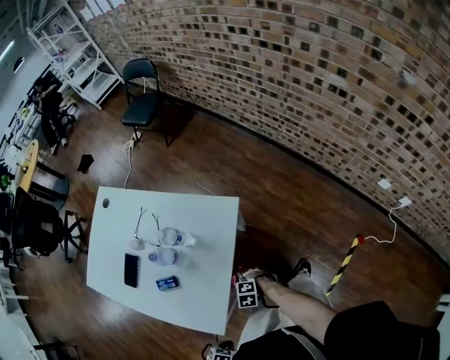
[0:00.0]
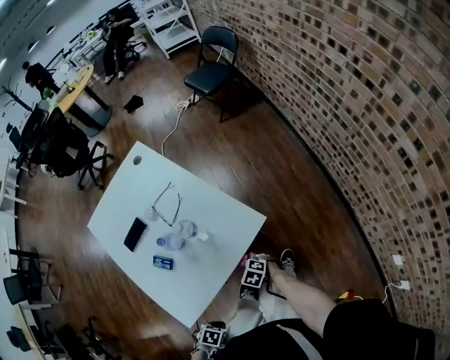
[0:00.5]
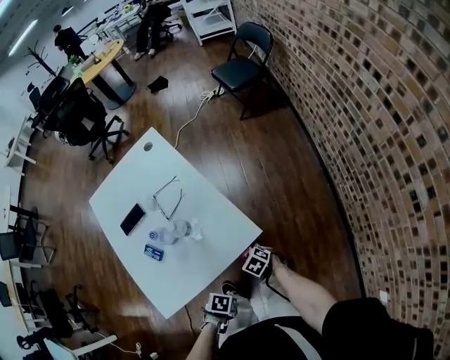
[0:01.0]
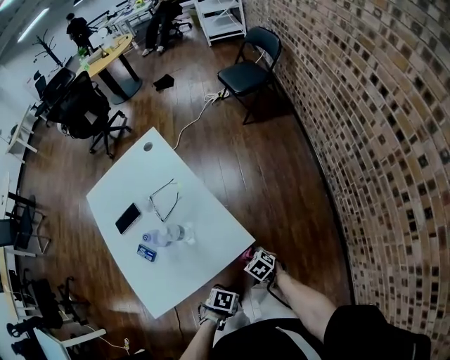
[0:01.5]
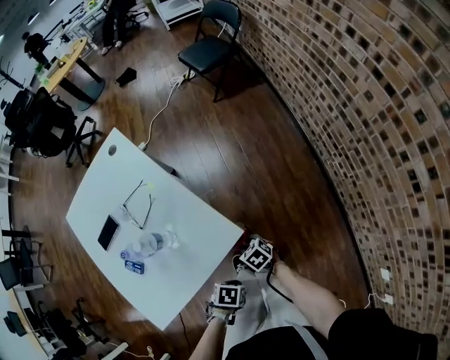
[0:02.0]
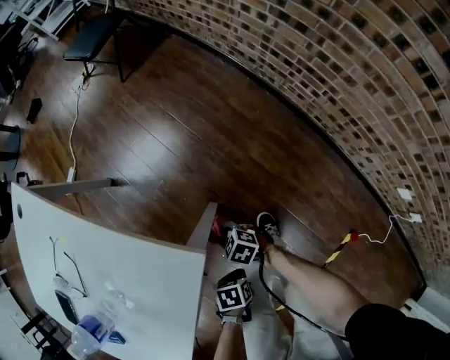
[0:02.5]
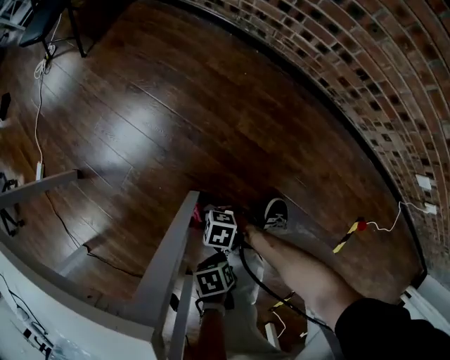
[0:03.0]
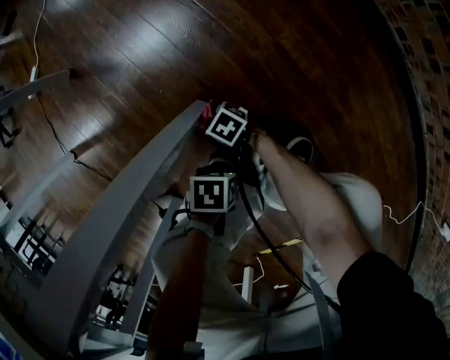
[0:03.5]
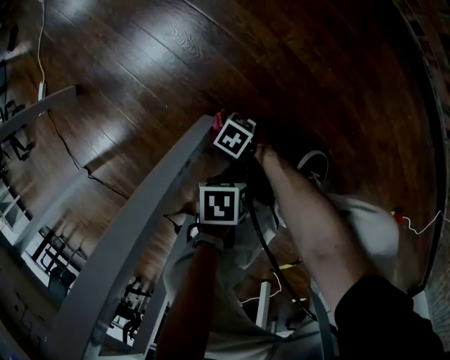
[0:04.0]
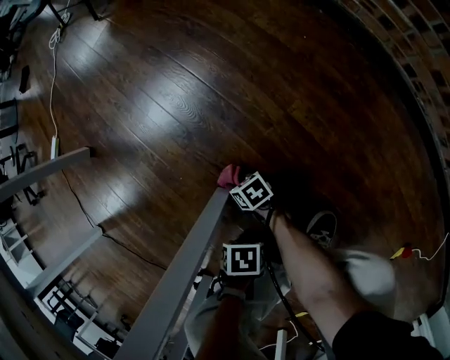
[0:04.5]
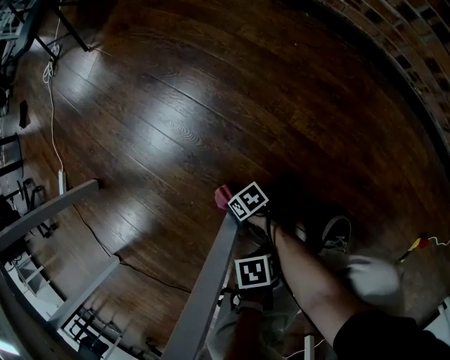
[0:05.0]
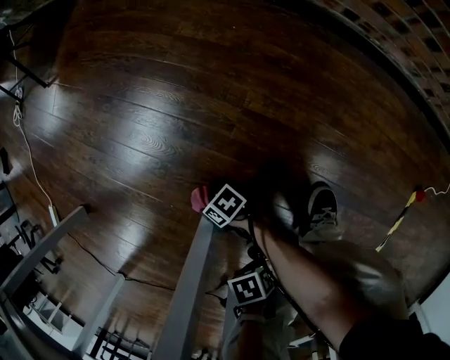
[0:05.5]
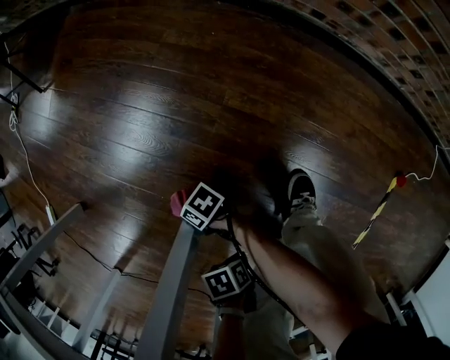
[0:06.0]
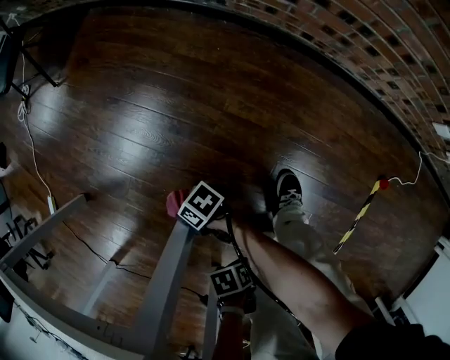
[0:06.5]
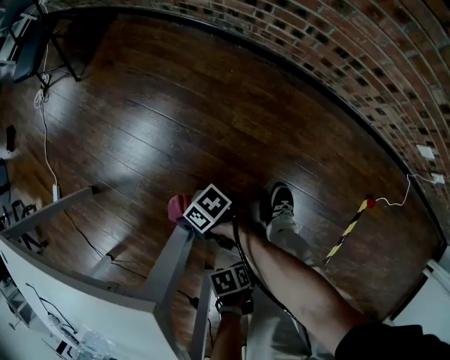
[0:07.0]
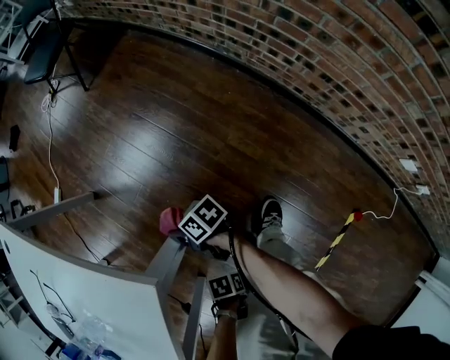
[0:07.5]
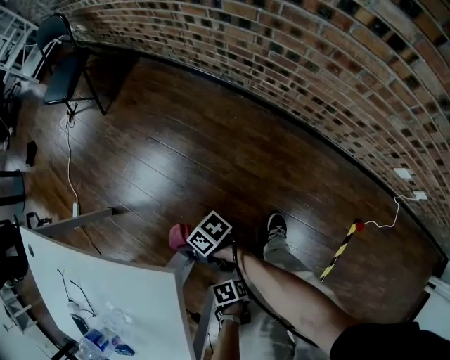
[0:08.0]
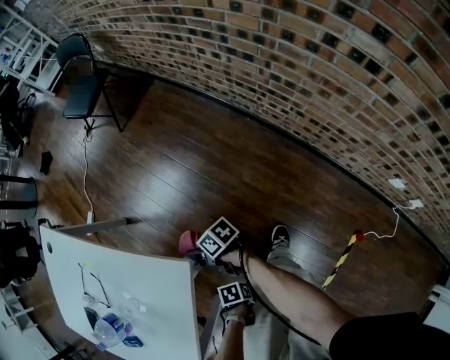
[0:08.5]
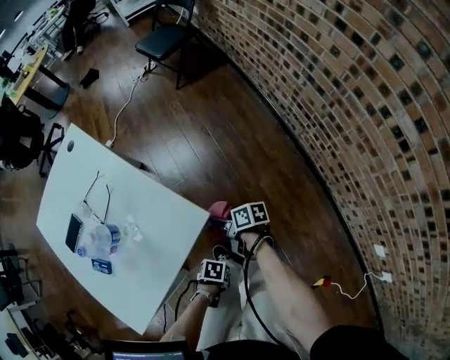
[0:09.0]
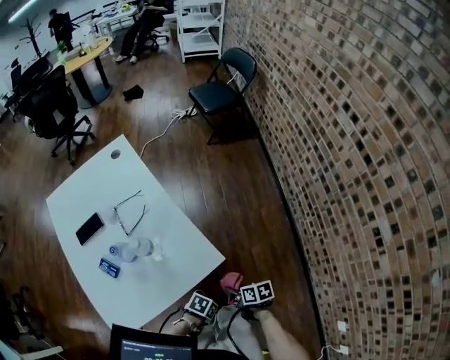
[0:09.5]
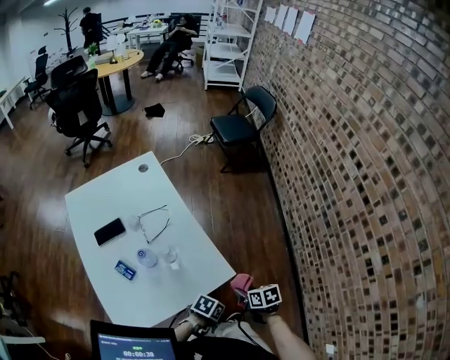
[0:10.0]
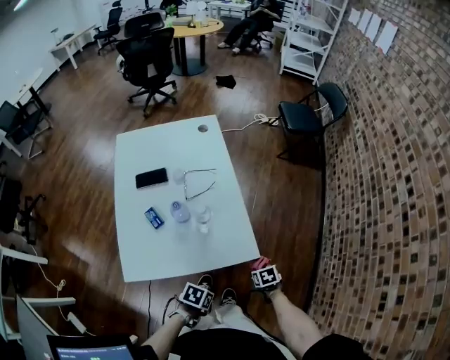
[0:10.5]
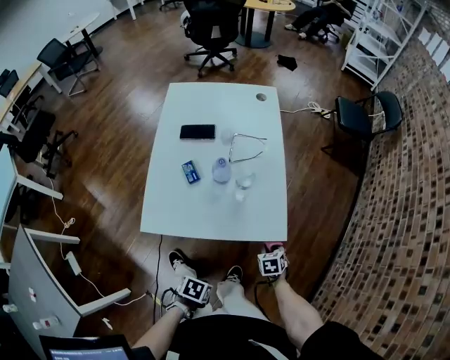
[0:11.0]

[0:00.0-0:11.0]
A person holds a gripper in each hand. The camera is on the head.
0.0 to 2.0 s: The right gripper shifts by about 30 cm, and changes its angle by roughly 20 degrees.
2.0 to 3.5 s: The right gripper moves downward, about 60 cm.
3.5 to 5.5 s: The right gripper goes downward and returns, some 10 cm each way, and rotates around the line of its fingers by about 40 degrees, clockwise from behind.
5.5 to 7.5 s: The right gripper shifts roughly 40 cm upward.
7.5 to 9.0 s: The right gripper goes some 15 cm upward.
9.0 to 11.0 s: The right gripper moves roughly 15 cm upward and comes back, and twists approximately 80 degrees counterclockwise, seen from behind.

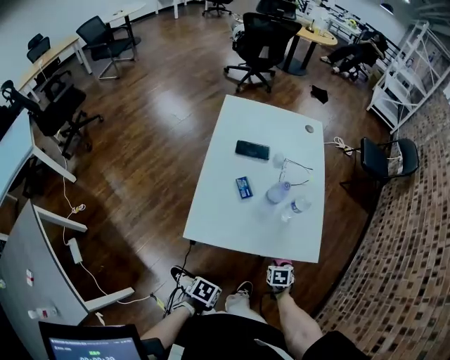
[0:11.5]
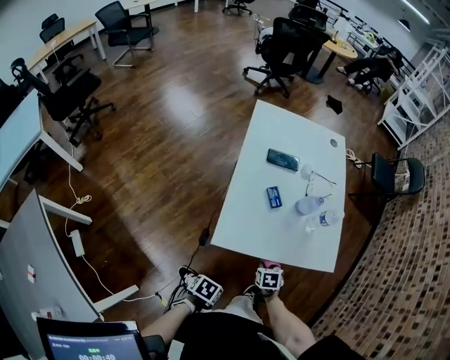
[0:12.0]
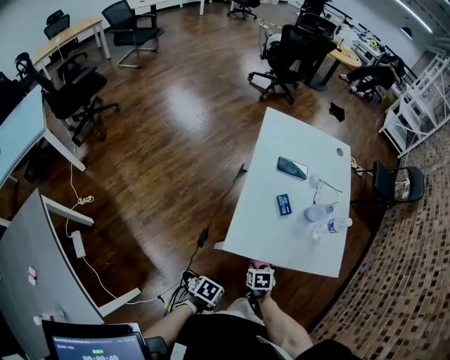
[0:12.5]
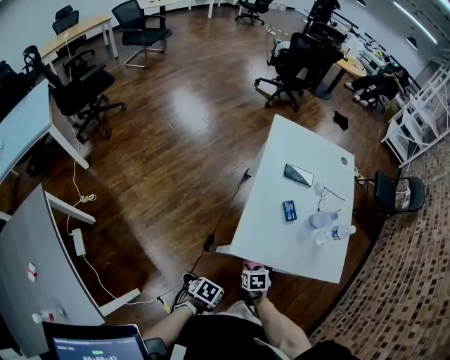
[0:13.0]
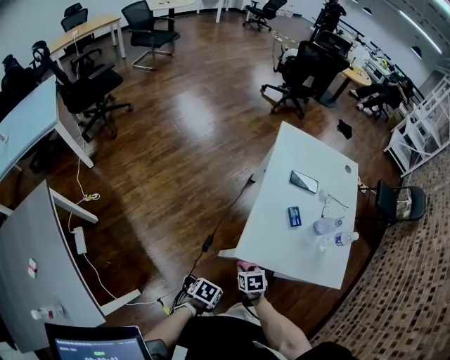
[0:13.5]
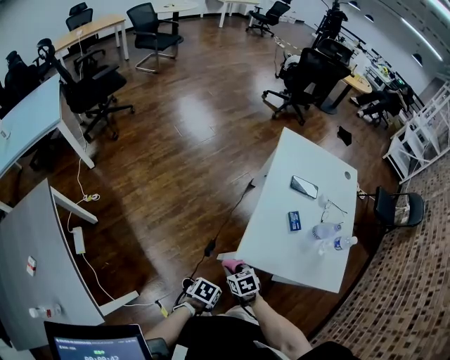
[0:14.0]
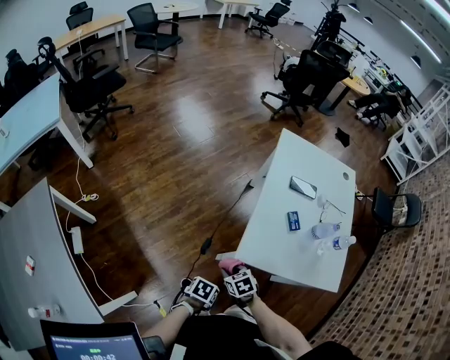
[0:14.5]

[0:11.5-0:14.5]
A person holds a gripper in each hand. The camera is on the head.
11.5 to 13.0 s: The right gripper changes place by roughly 30 cm.
13.0 to 14.5 s: The right gripper changes place by approximately 15 cm, and turns by about 30 degrees.

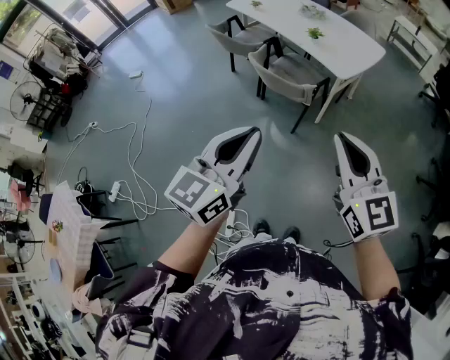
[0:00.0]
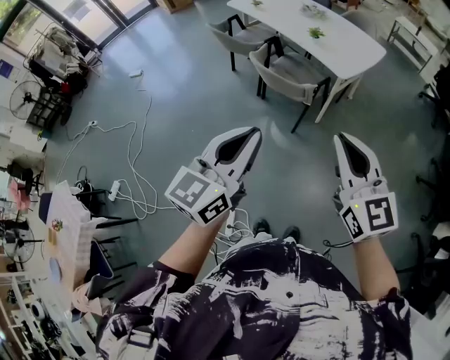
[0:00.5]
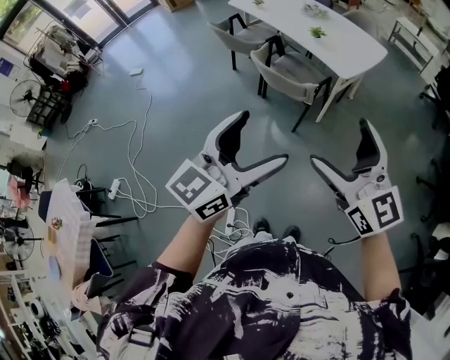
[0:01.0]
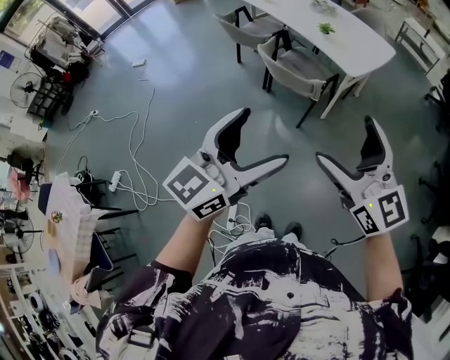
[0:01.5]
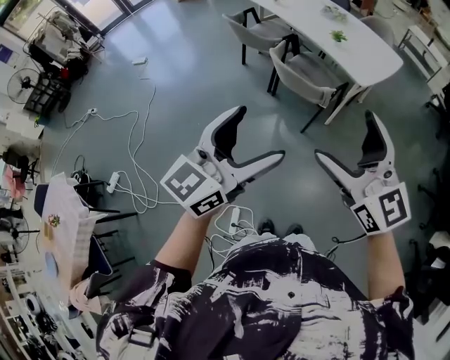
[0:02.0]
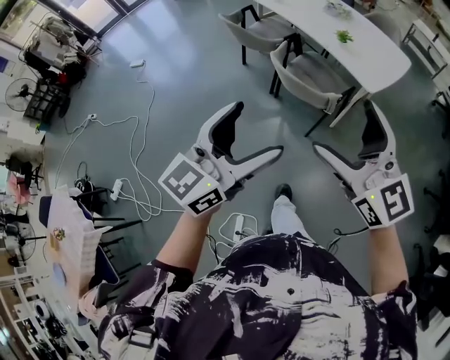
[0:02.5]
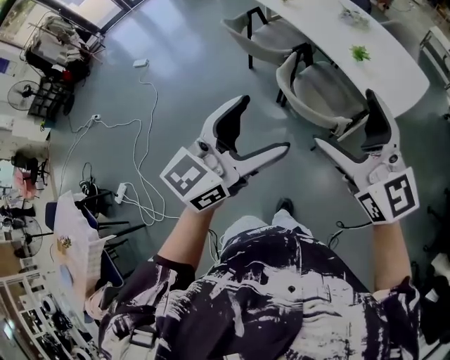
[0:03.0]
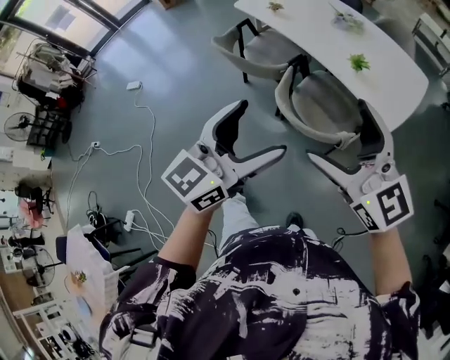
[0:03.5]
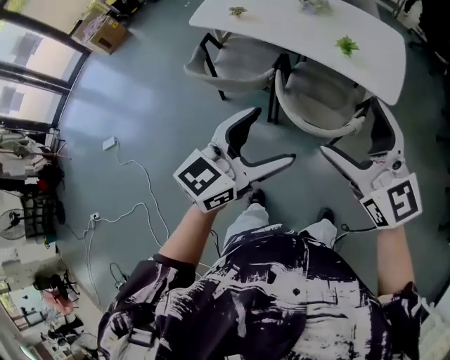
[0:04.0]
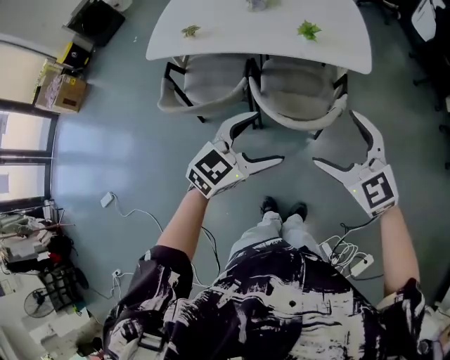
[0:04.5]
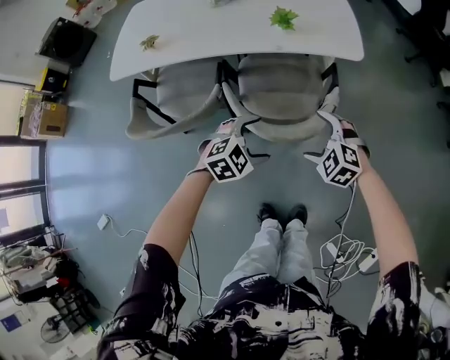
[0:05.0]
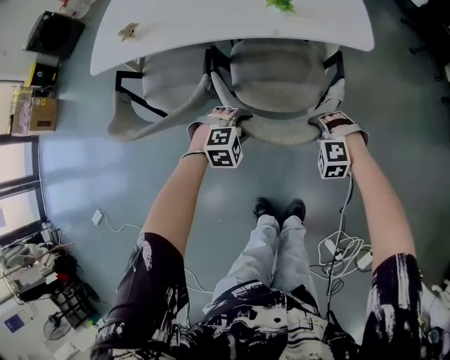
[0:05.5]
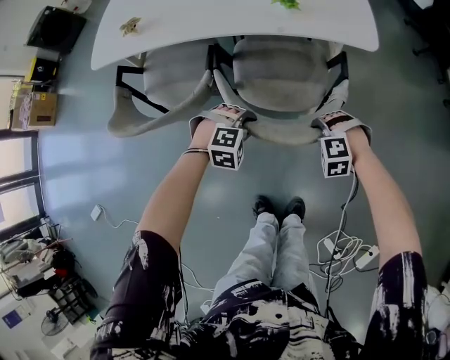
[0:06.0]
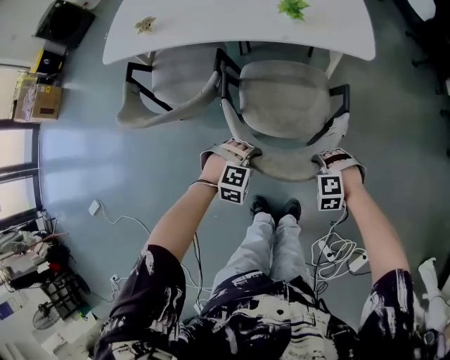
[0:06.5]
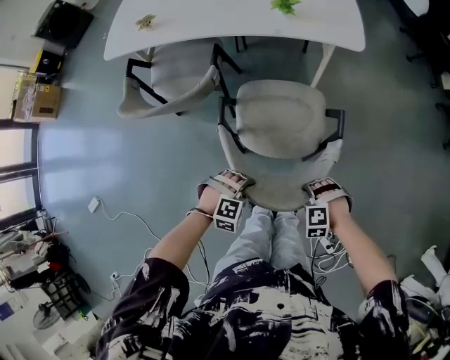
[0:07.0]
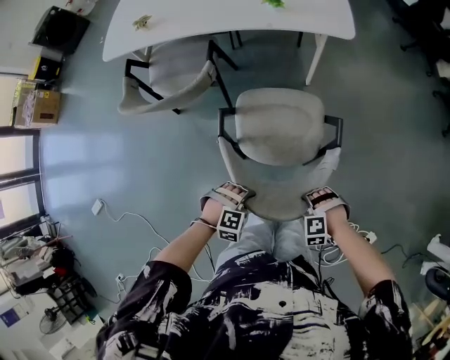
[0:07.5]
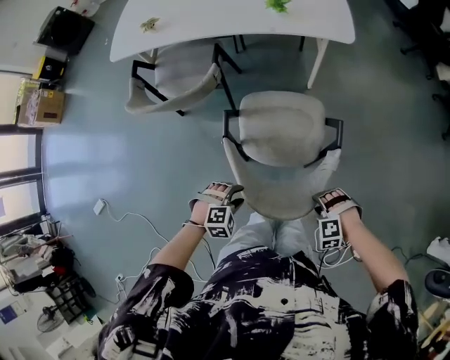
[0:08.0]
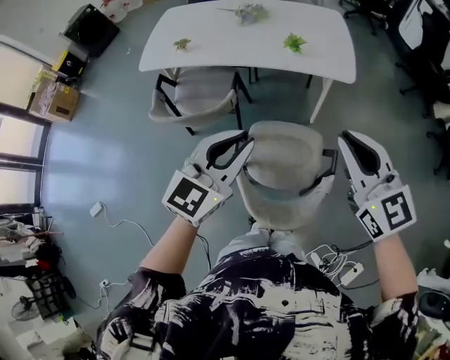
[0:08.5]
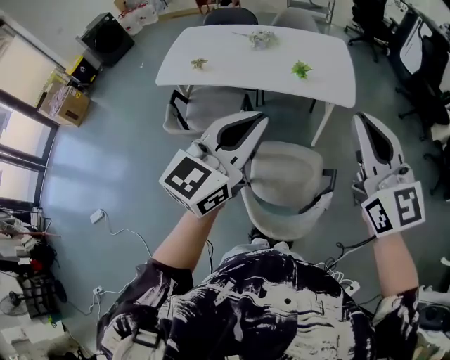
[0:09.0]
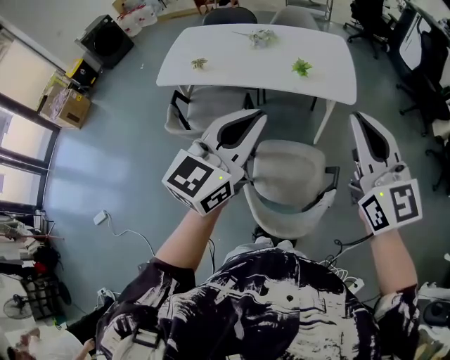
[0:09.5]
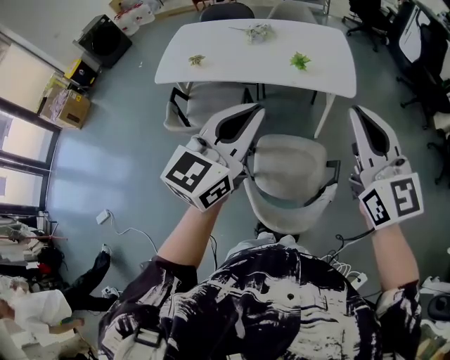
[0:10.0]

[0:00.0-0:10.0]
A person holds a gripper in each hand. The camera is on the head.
0.0 to 2.0 s: Both grippers move to the left, approximately 10 cm. The right gripper opens; the left gripper opens.
2.0 to 4.0 s: The two grippers travel together, roughly 50 cm. The left gripper swivels about 30 degrees, while the right gripper turns by some 20 degrees.
4.0 to 6.0 s: The grippers both shift downward by about 50 cm. The left gripper tilts its fingers roughly 60 degrees downward, and closes up. The right gripper tilts its fingers about 70 degrees downward, and closes.
6.0 to 8.0 s: The right gripper ends up roughly 35 cm from where it was. The left gripper shifts by some 35 cm.
8.0 to 10.0 s: Both grippers move upward, about 60 cm. The right gripper tips its fingers upward by about 80 degrees, and closes up, while the left gripper points its fingers approximately 70 degrees further upward, and closes.

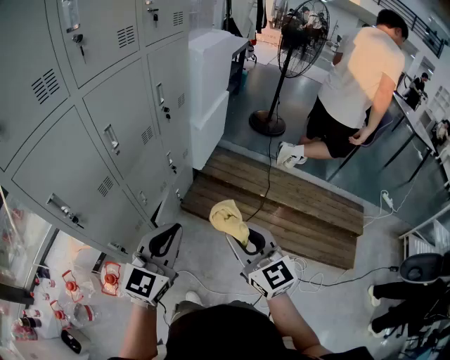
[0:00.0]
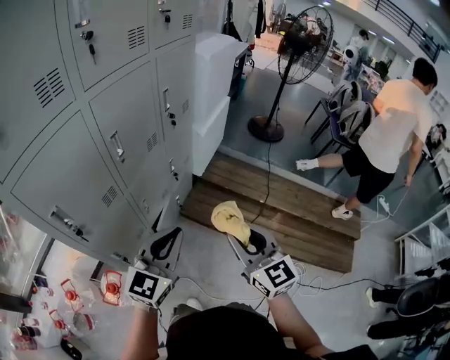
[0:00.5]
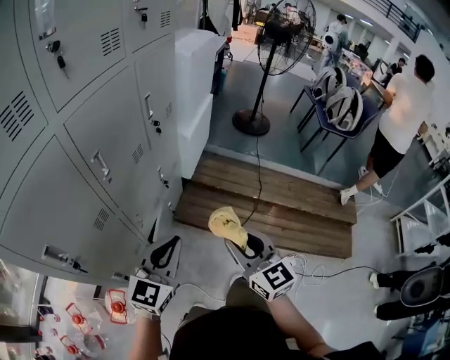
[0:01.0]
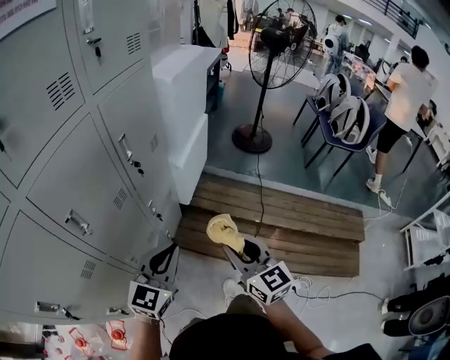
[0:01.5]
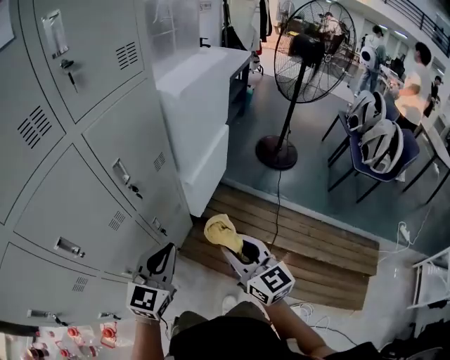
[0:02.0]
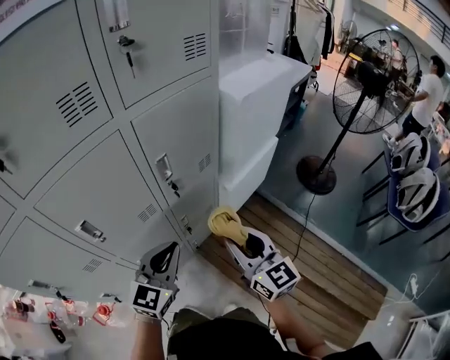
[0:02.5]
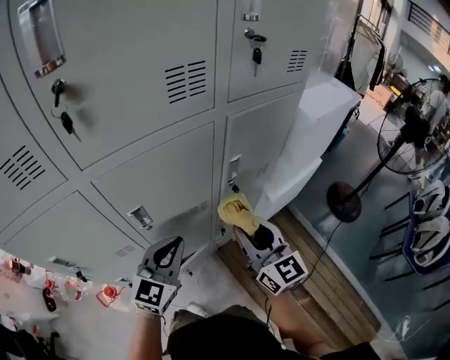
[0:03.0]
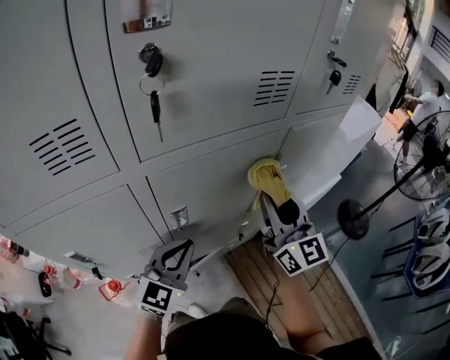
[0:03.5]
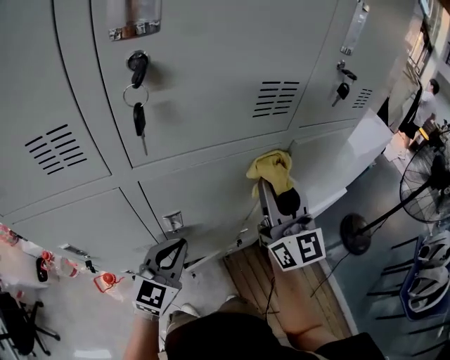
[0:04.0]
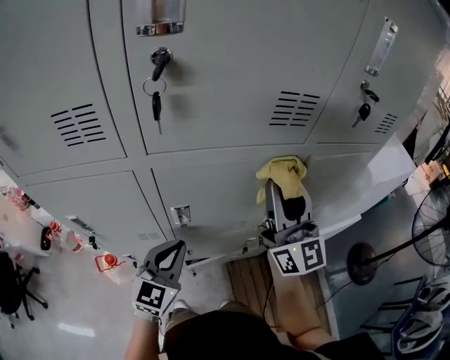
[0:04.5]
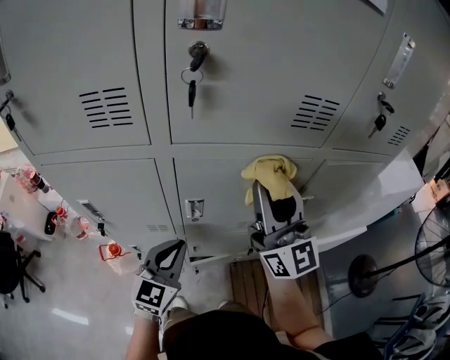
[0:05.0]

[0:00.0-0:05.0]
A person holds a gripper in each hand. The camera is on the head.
0.0 to 2.5 s: The right gripper shifts by some 40 cm, and turns by some 20 degrees. The left gripper changes place by about 35 cm, and swivels about 30 degrees.
2.5 to 5.0 s: The left gripper moves roughly 15 cm, and changes its angle by roughly 30 degrees. The right gripper changes place by about 30 cm, and angles its fingers upward, by about 30 degrees.
